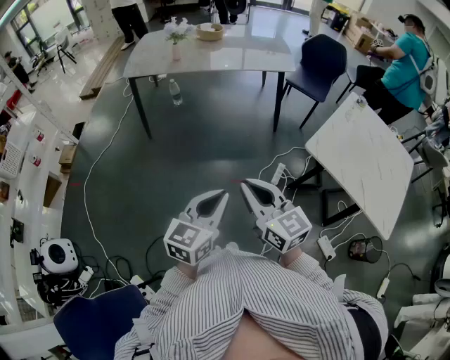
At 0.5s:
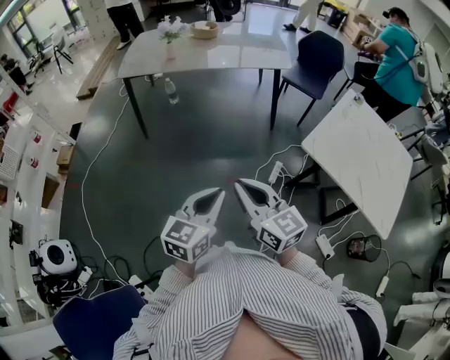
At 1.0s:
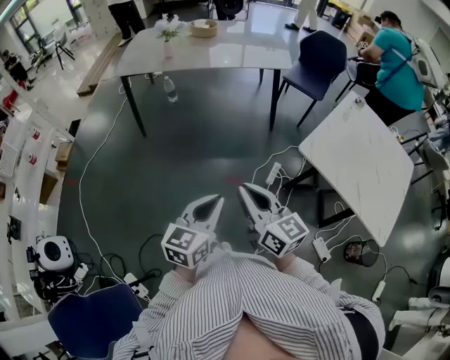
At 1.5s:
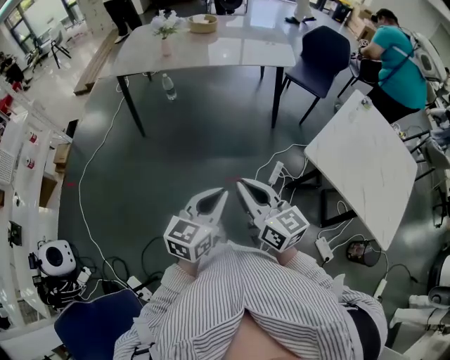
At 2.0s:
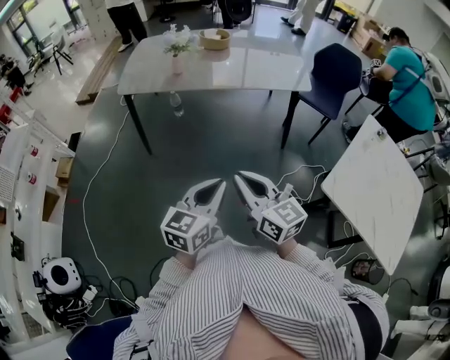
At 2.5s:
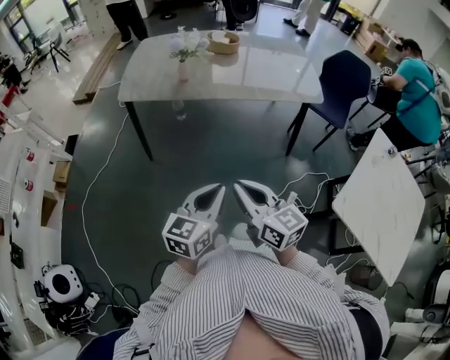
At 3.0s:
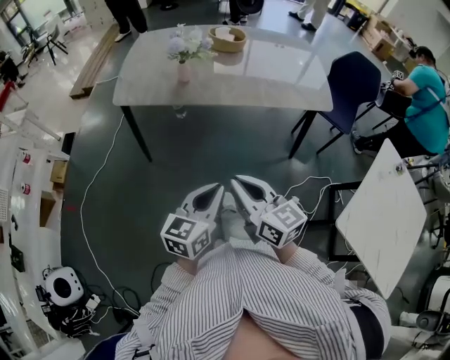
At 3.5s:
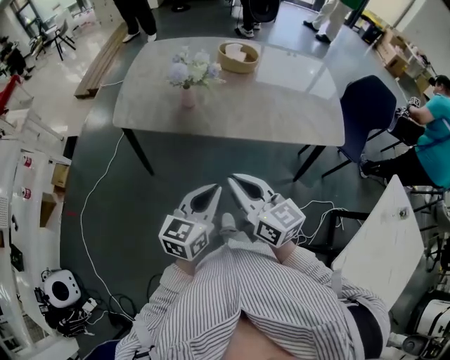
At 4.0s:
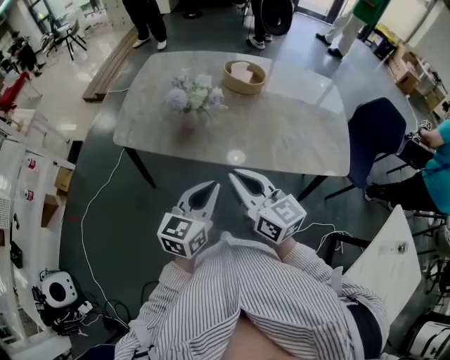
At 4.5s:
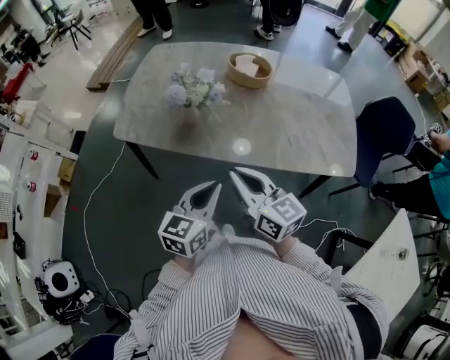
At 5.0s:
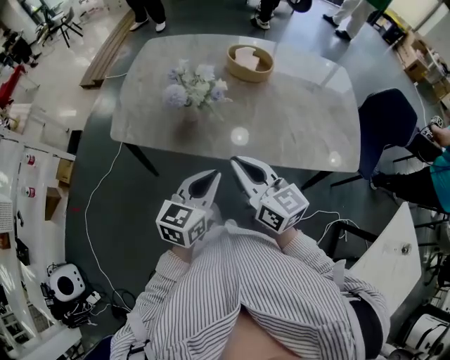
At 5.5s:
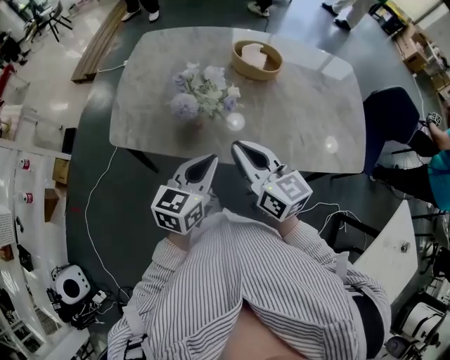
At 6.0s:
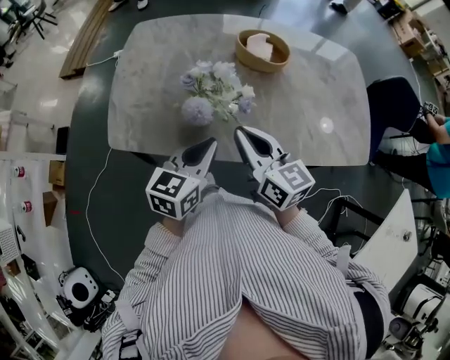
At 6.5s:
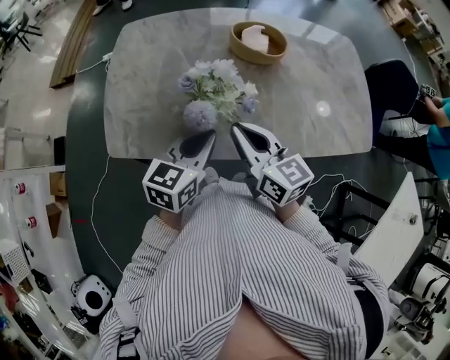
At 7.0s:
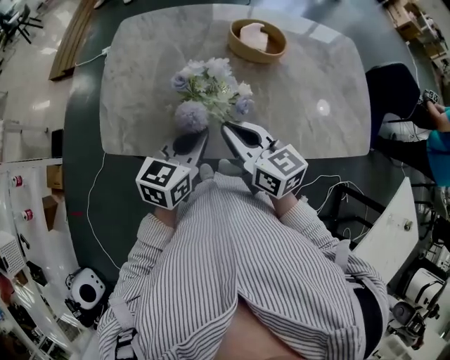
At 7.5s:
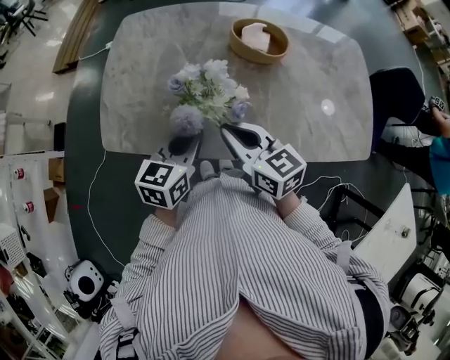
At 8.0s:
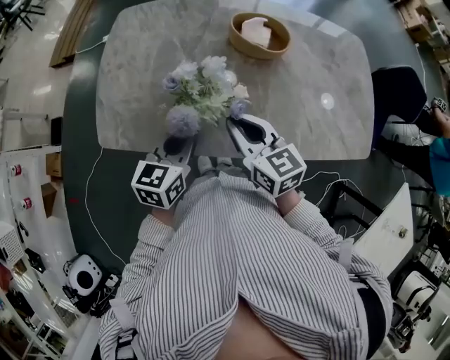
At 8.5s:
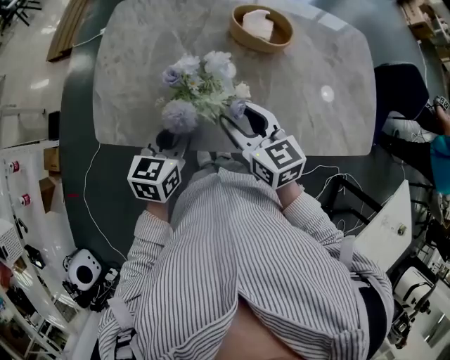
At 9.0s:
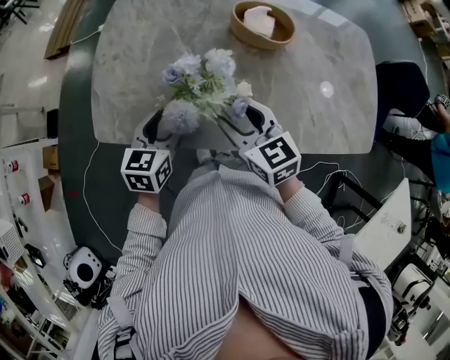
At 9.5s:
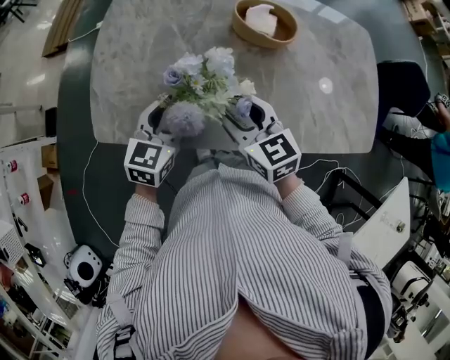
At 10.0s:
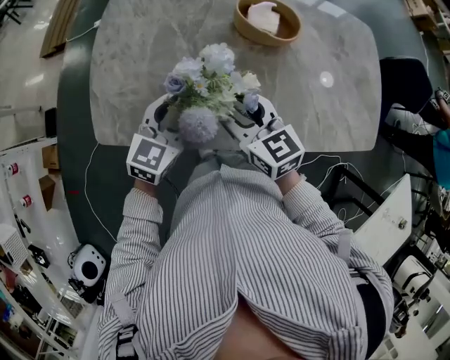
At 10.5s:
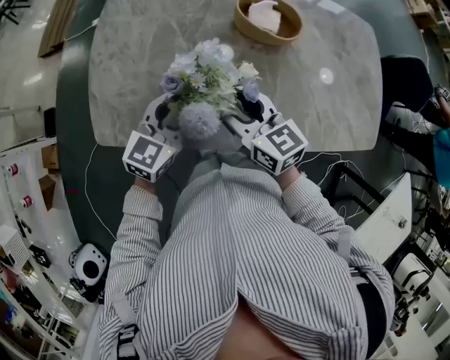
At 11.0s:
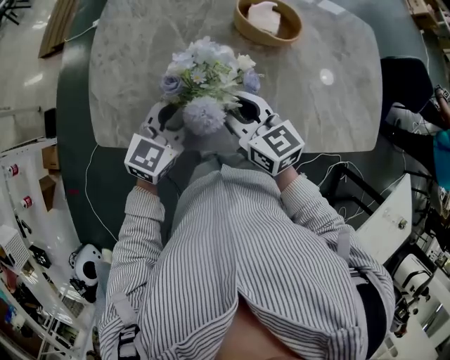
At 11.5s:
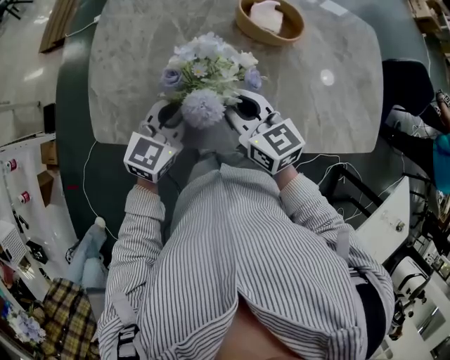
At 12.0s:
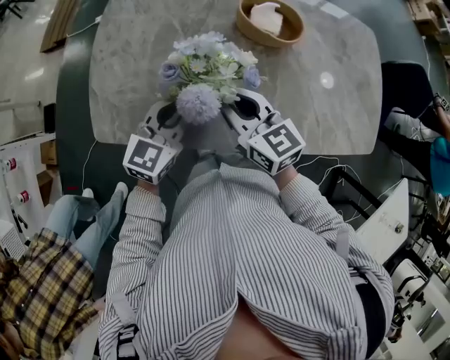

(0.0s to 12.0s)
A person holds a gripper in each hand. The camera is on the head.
0.0s - 2.0s: Both grippers travel together forward, roughly 25 cm.
2.0s - 4.0s: The two grippers travel together, forward, approximately 40 cm.
4.0s - 6.0s: The right gripper moves forward, about 20 cm. Meanwhile the left gripper heads forward and to the left, covering roughly 20 cm.
6.0s - 8.0s: The right gripper moves roughly 5 cm; the left gripper is displaced forward by roughly 5 cm.
8.0s - 10.0s: The left gripper moves forward, approximately 5 cm, turns by roughly 20 degrees, and opens its fingers, while the right gripper opens.
10.0s - 12.0s: The left gripper closes its fingers. Meanwhile the right gripper closes its fingers.

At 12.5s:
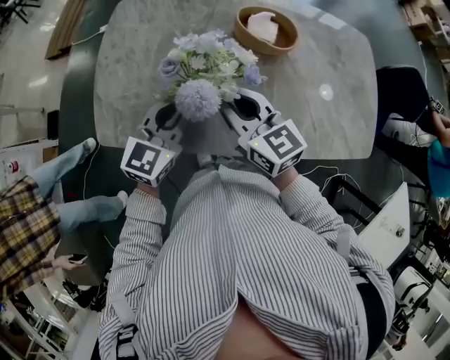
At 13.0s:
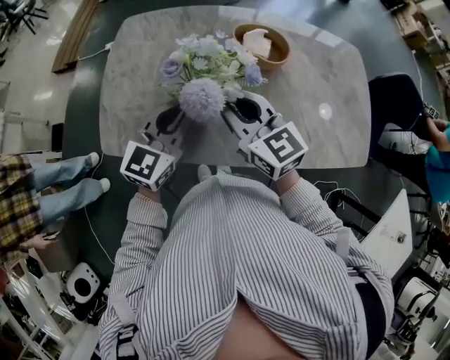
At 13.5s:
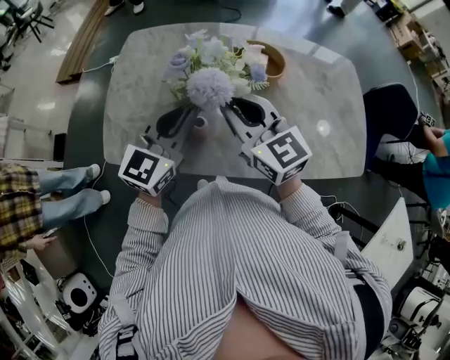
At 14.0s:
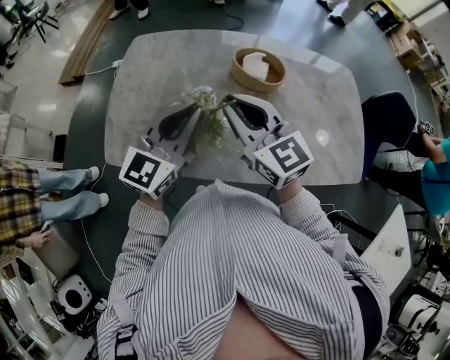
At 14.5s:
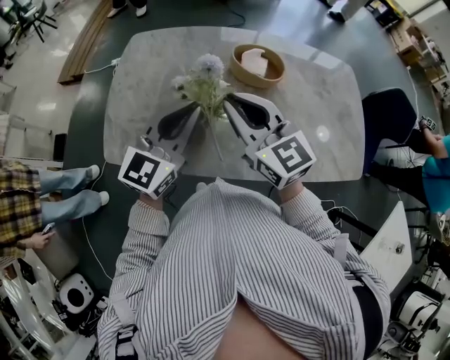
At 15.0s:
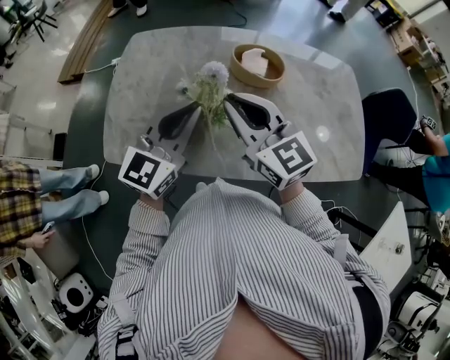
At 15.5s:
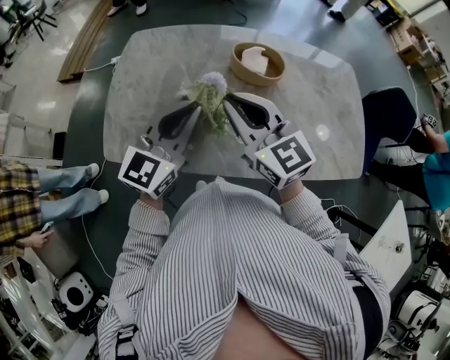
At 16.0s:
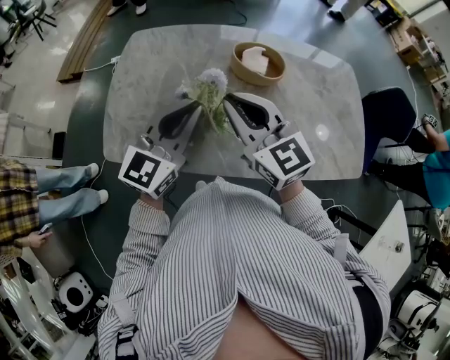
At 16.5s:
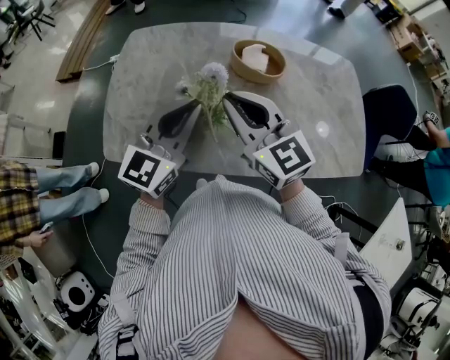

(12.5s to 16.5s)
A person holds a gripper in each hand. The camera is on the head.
12.5s - 14.5s: The grippers both shift upward by about 10 cm.
14.5s - 16.5s: Both grippers stay about where they are.

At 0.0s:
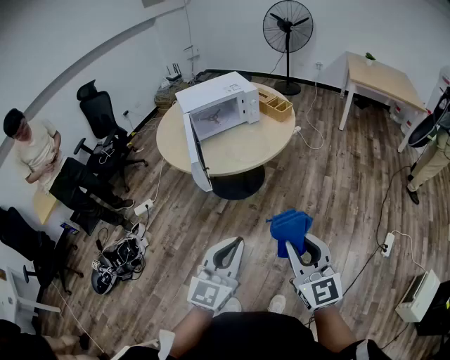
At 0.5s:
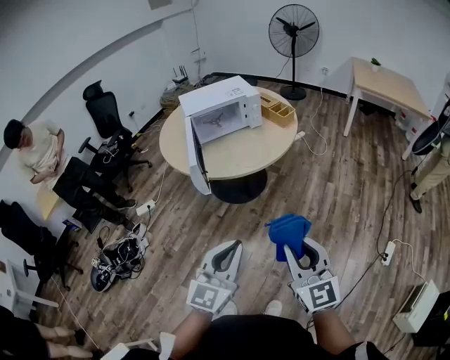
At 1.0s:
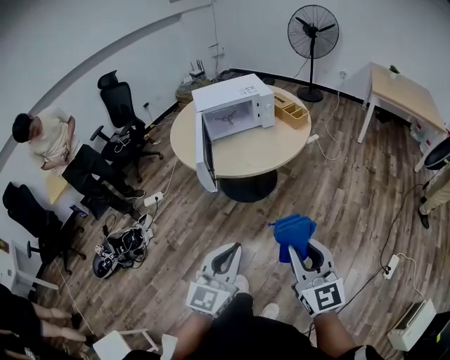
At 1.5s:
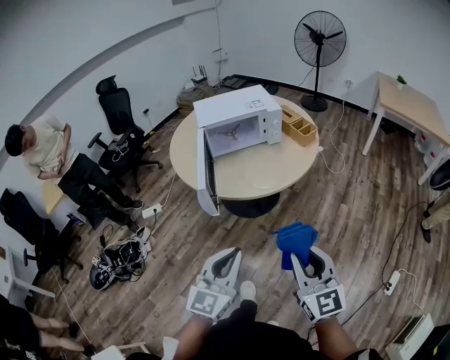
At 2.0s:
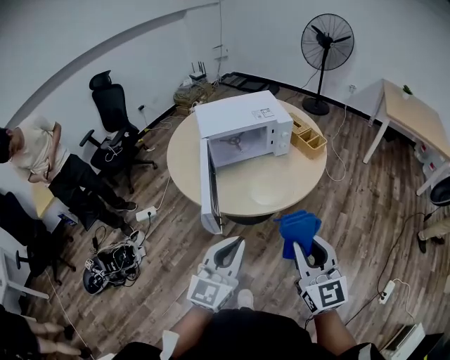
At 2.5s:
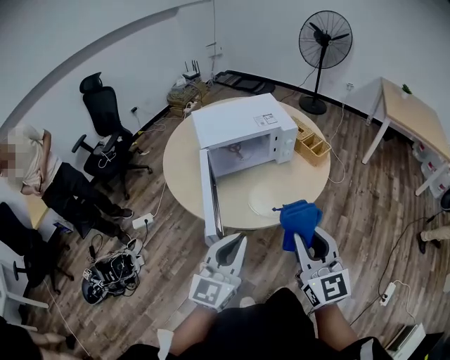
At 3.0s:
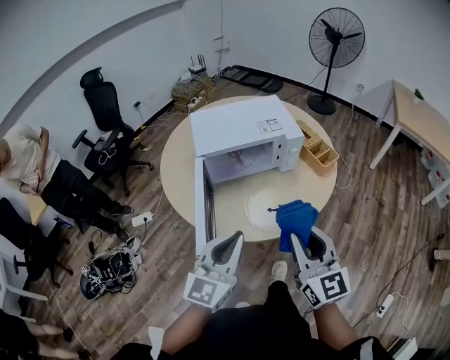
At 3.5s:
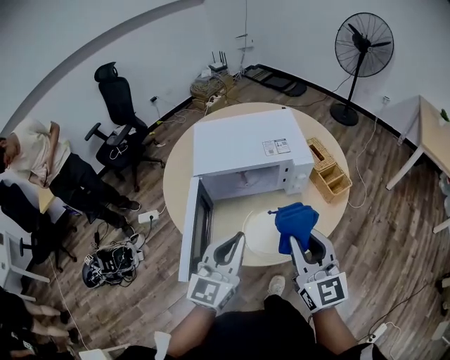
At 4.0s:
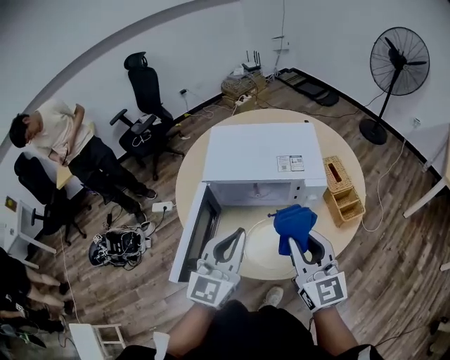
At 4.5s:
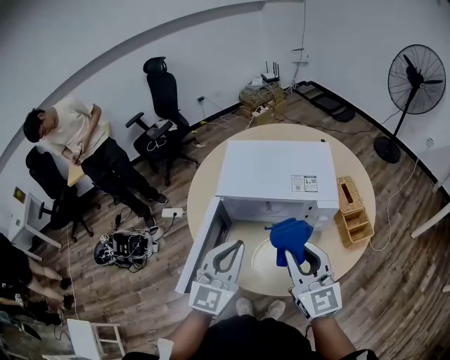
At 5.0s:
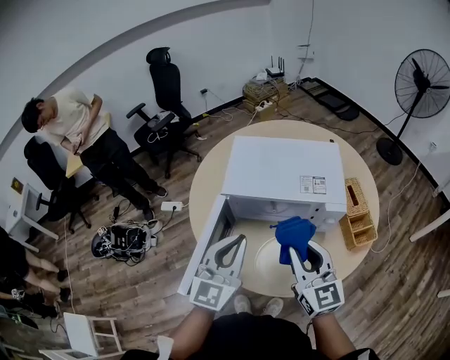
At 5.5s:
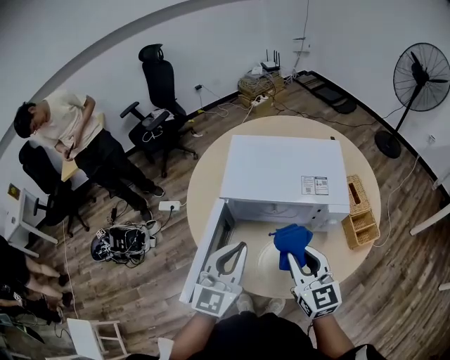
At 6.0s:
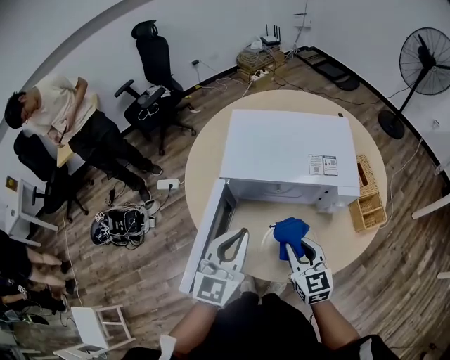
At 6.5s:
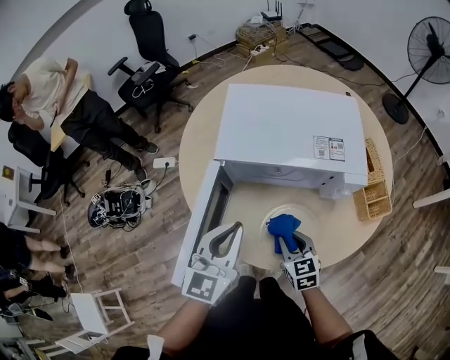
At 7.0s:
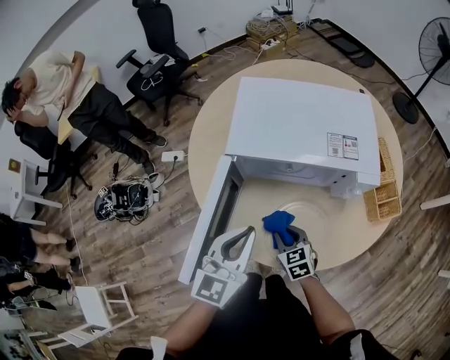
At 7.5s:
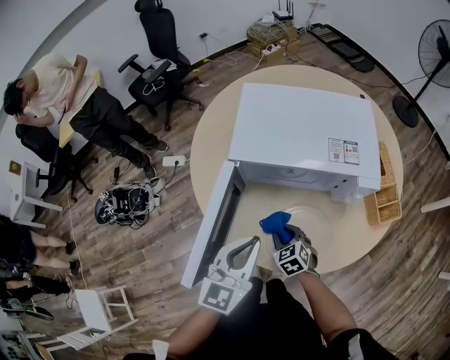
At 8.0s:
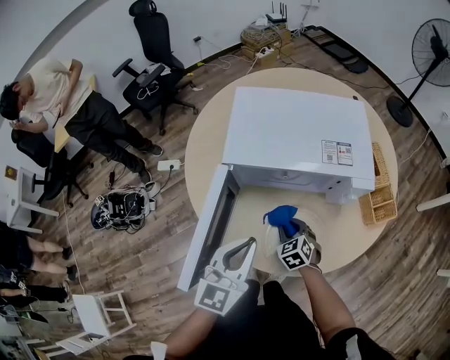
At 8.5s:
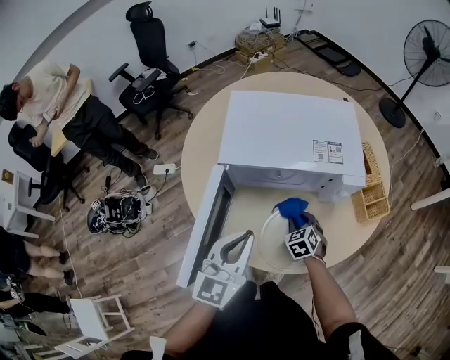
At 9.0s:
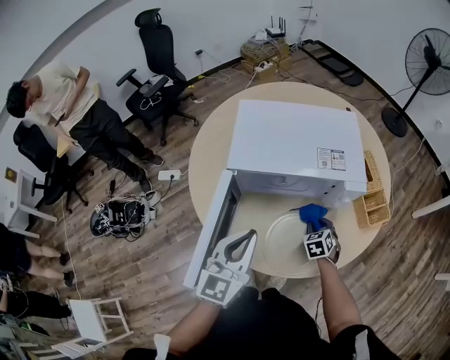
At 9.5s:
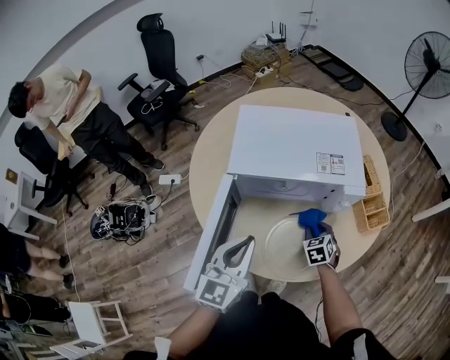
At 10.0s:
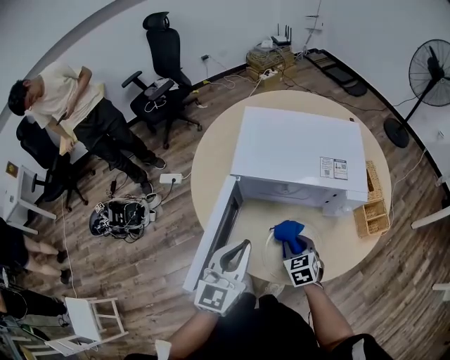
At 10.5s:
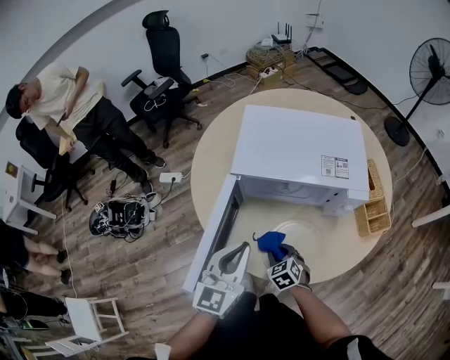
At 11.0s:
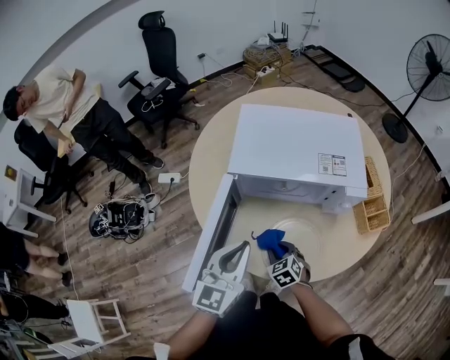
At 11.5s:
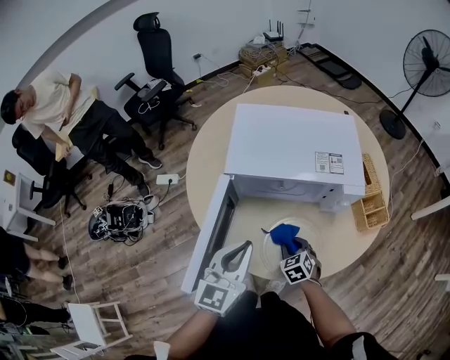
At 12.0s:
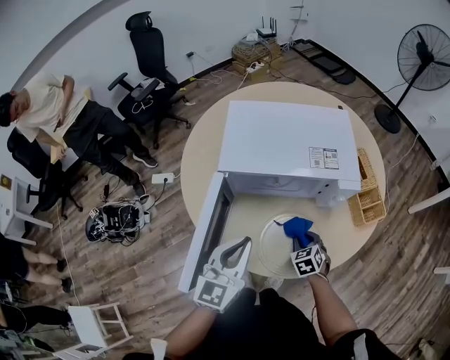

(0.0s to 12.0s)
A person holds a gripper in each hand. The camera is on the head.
0.0s - 2.0s: Both grippers move forward, approximately 25 cm.
2.0s - 4.0s: The grippers both shift forward by approximately 35 cm. The left gripper turns by some 20 degrees, while the right gripper swivels some 20 degrees.
4.0s - 6.0s: The right gripper shifts about 15 cm downward, and turns by some 20 degrees, while the left gripper is displaced downward, to the left and forward by about 10 cm.
6.0s - 8.0s: The left gripper heads downward, covering about 5 cm, while the right gripper heads downward, covering roughly 20 cm, and rotates approximately 40 degrees.
8.0s - 10.0s: The right gripper goes about 5 cm upward, and travels to the right and back again, some 10 cm each way.
10.0s - 12.0s: The right gripper is displaced to the right and downward by about 10 cm.
